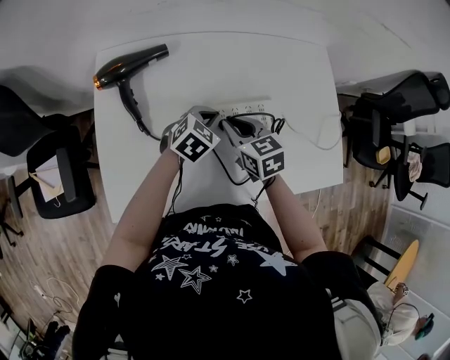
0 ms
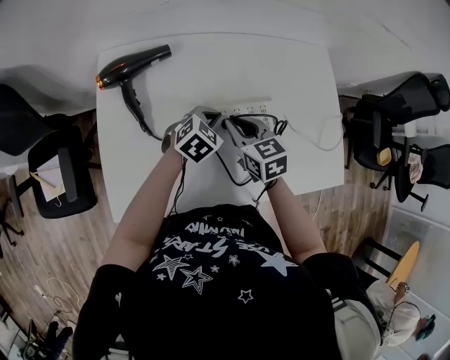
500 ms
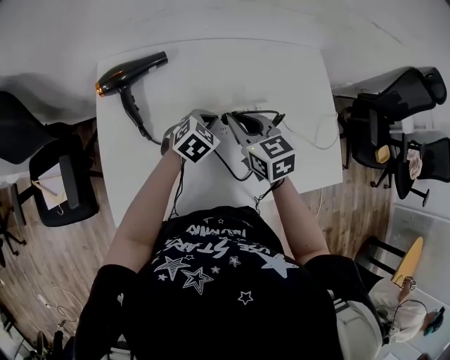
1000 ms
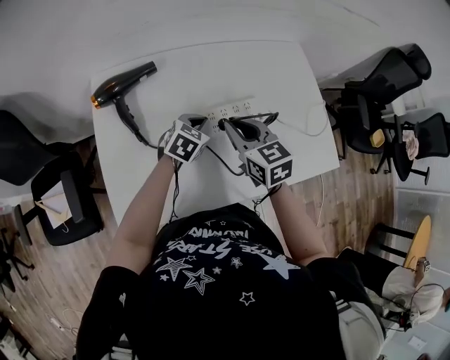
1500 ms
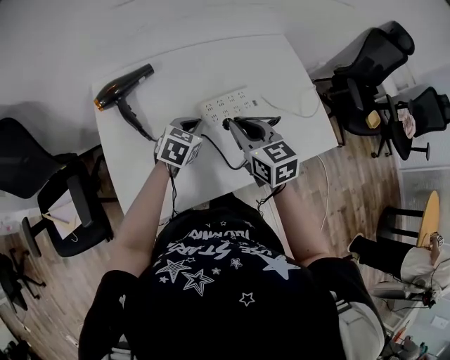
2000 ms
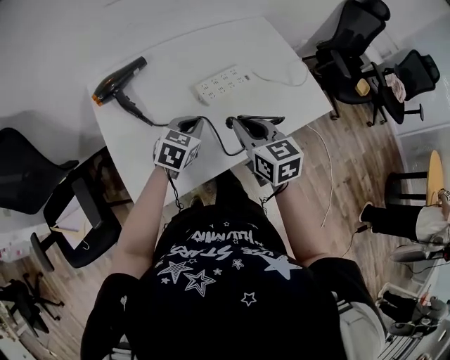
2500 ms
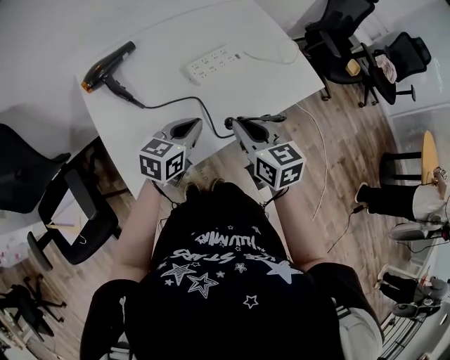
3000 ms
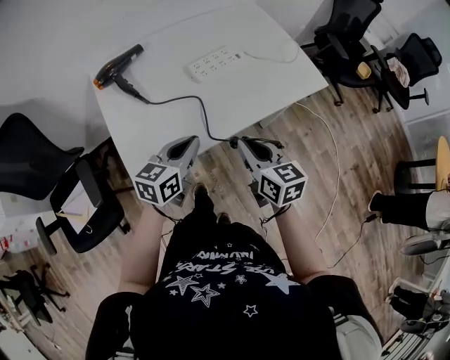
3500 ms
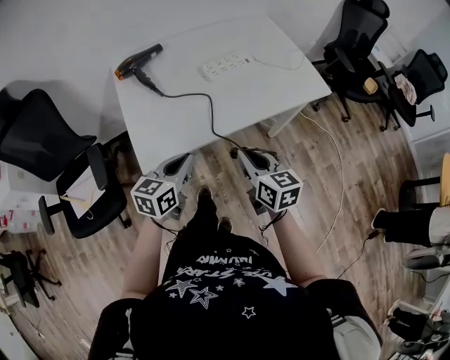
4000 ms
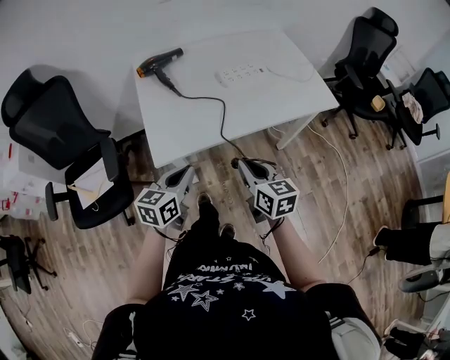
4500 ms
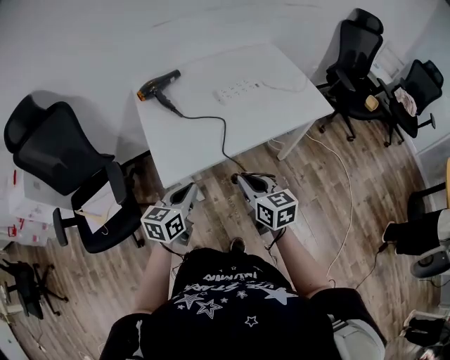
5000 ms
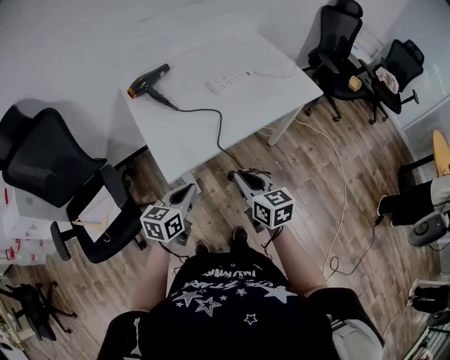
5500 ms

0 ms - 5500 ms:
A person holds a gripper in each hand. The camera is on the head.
0 ms - 2000 ms: The right gripper heads upward and backward, covering some 15 cm. The left gripper heads backward, covering some 5 cm.
2000 ms - 3500 ms: The two grippers go some 25 cm backward. The left gripper rotates some 30 degrees.
3500 ms - 5500 ms: Both grippers travel together backward and to the left, roughly 20 cm.

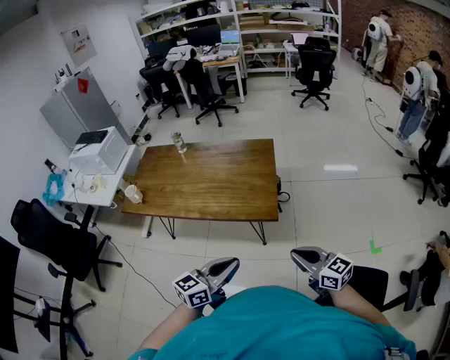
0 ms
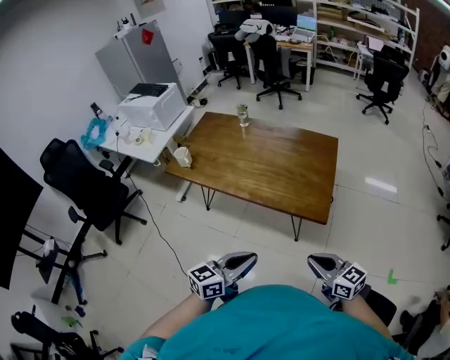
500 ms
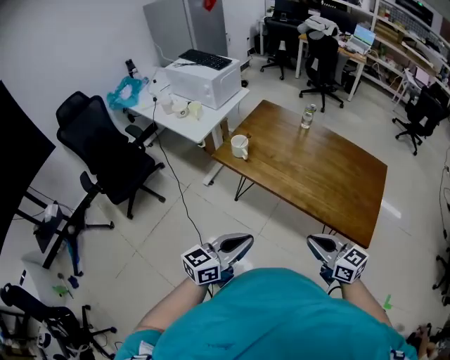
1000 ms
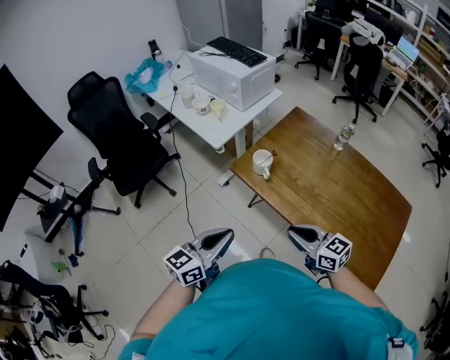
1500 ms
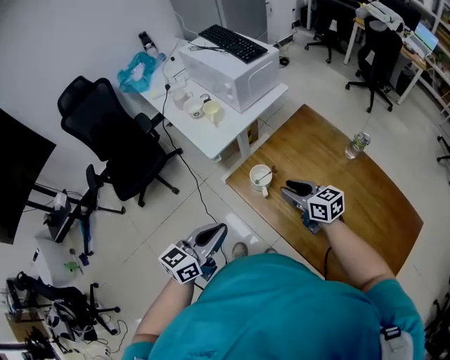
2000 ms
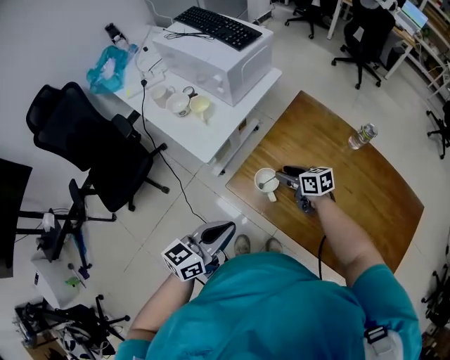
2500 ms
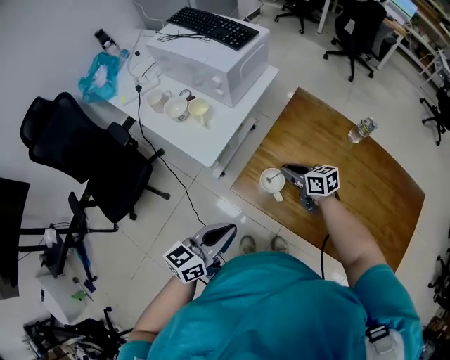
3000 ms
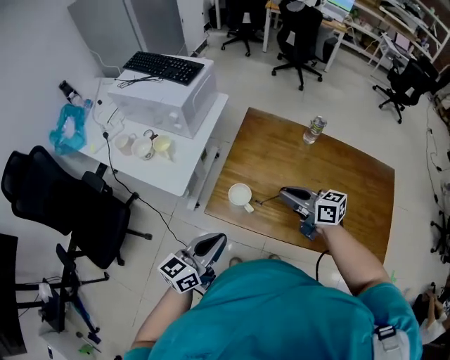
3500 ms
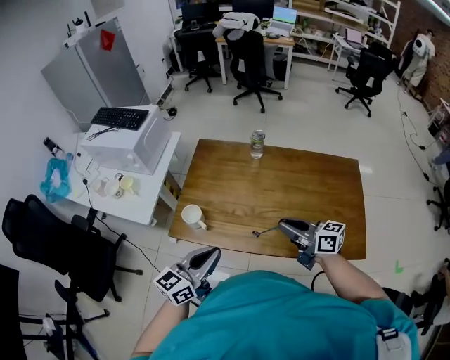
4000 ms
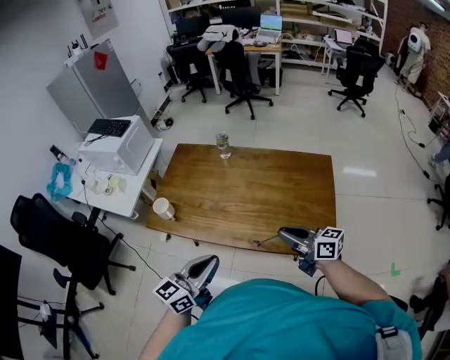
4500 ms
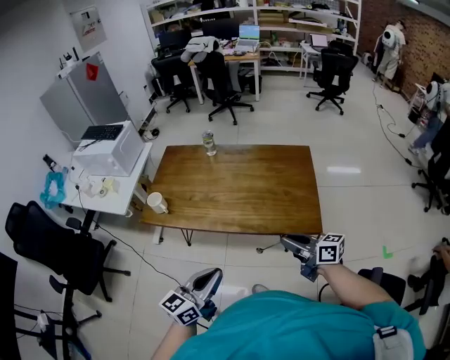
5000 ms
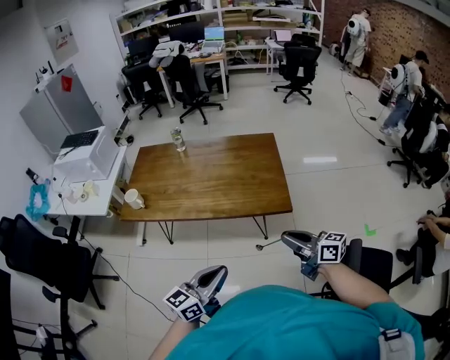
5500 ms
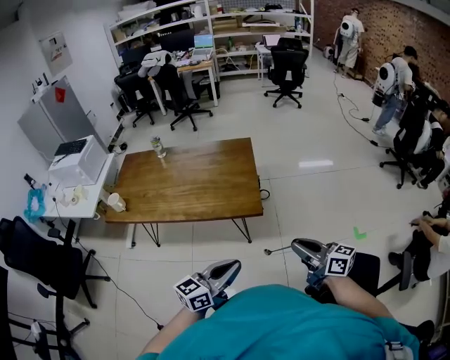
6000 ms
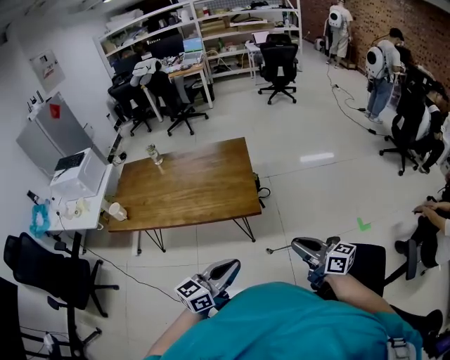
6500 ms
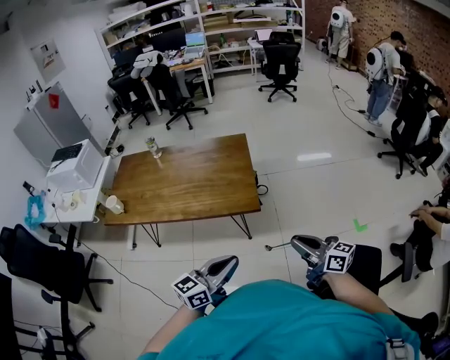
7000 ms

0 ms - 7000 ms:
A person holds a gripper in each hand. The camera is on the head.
0 ms - 2000 ms: The two grippers travel together, approximately 90 cm. The right gripper changes its angle by some 40 degrees, and opens its fingers. Meanwhile the left gripper turns by approximately 40 degrees.
2000 ms - 3500 ms: The left gripper moves forward, some 10 cm, and turns by about 30 degrees. The right gripper goes downward and returns, approximately 15 cm each way, changes its angle by about 20 degrees, and closes its fingers.
3500 ms - 5000 ms: The two grippers travel together, backward and to the right, roughly 60 cm.
5000 ms - 7000 ms: The right gripper moves to the right and backward, about 35 cm, while the left gripper heads to the right, covering some 30 cm.

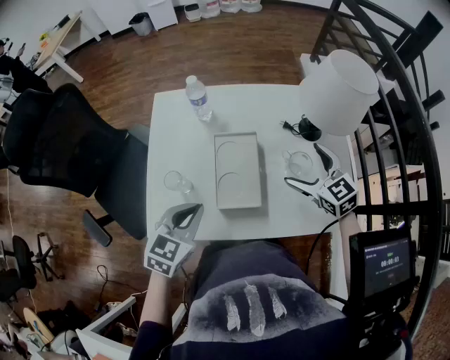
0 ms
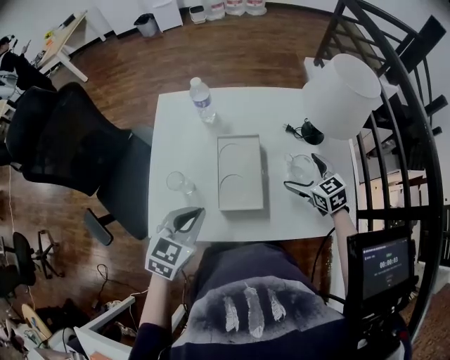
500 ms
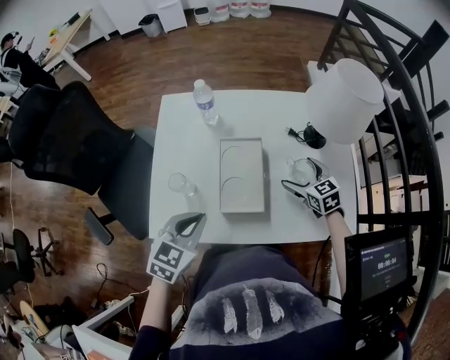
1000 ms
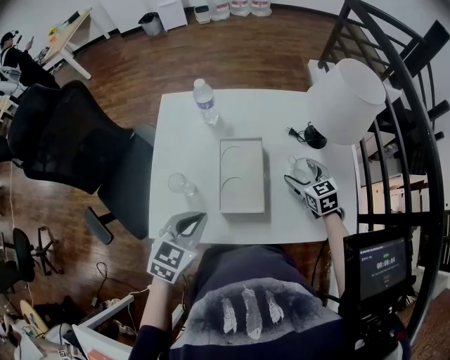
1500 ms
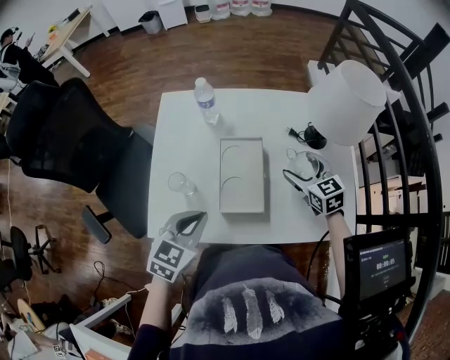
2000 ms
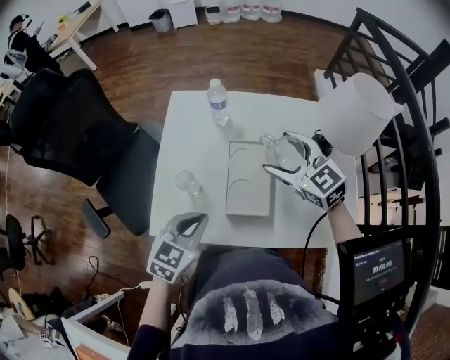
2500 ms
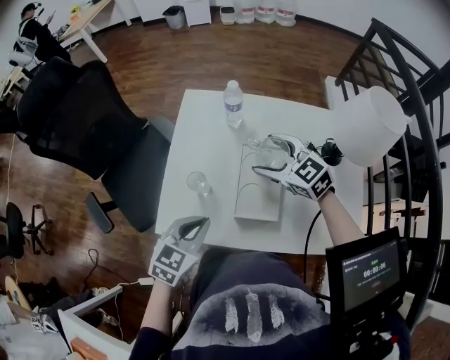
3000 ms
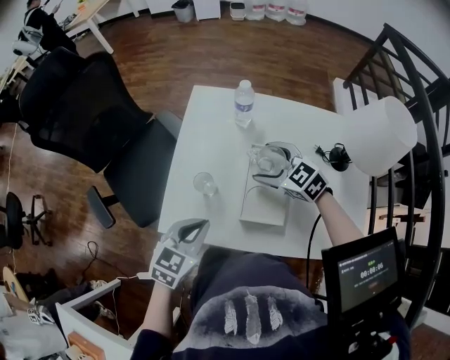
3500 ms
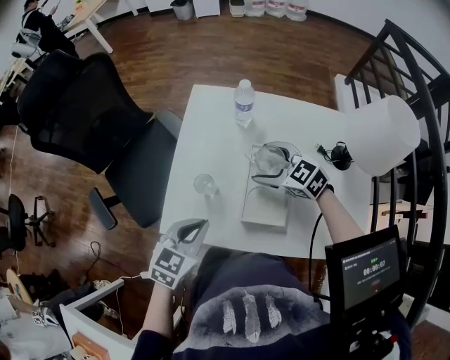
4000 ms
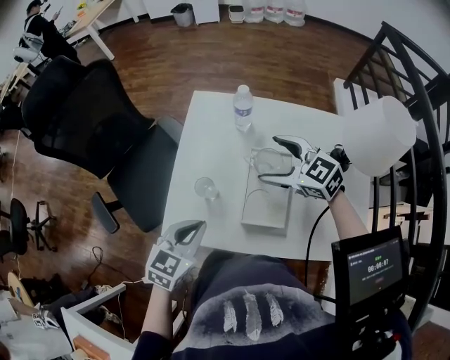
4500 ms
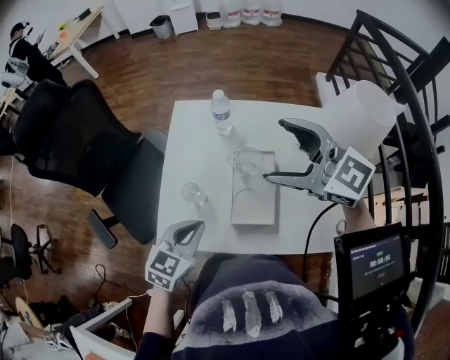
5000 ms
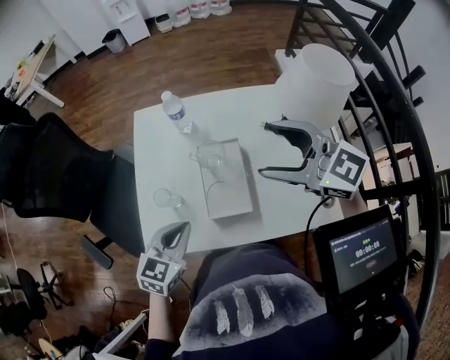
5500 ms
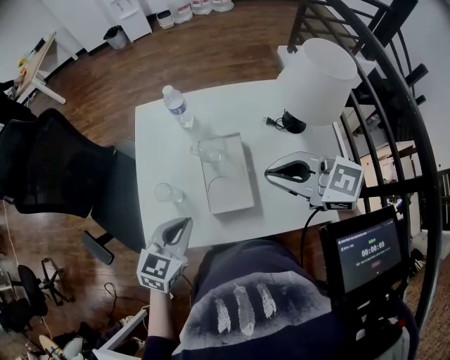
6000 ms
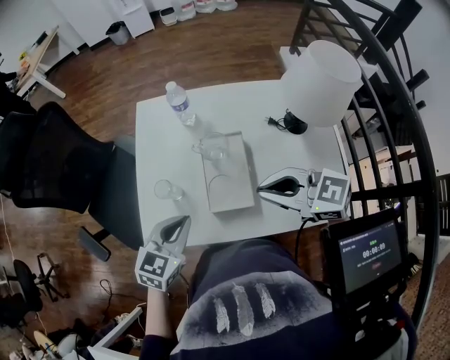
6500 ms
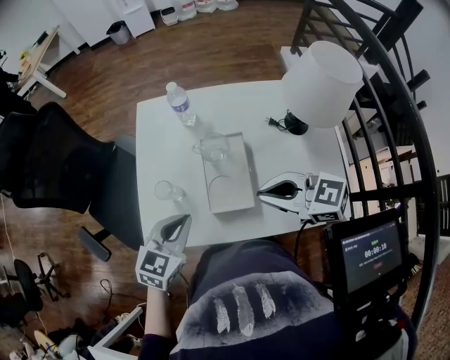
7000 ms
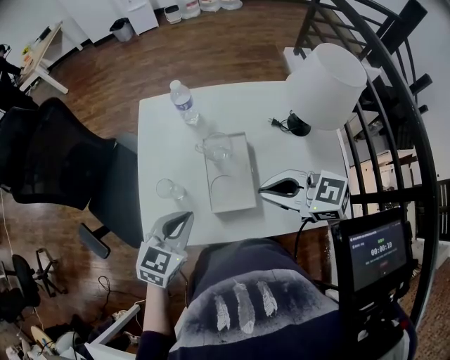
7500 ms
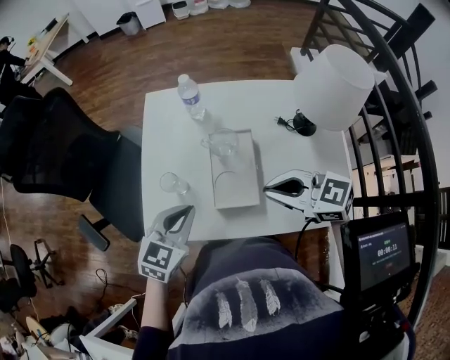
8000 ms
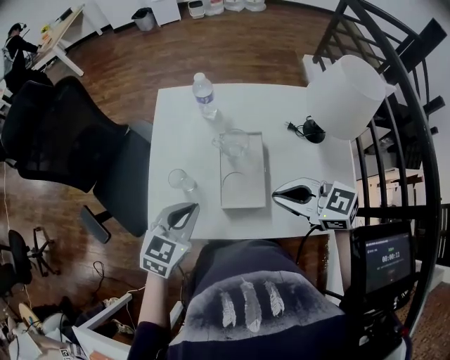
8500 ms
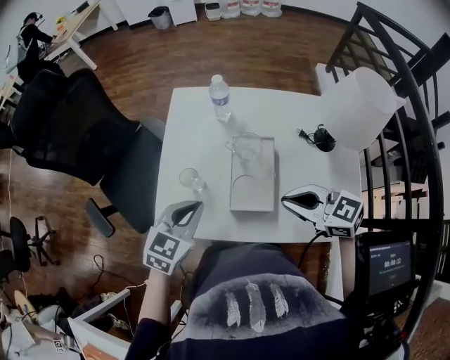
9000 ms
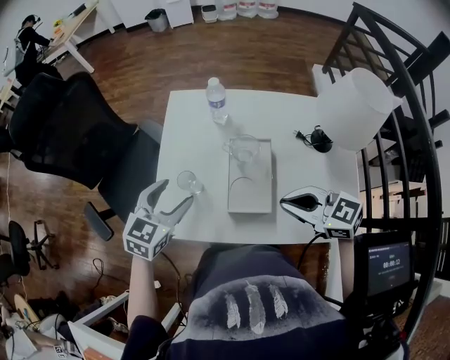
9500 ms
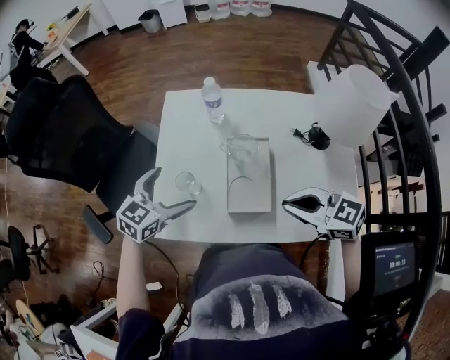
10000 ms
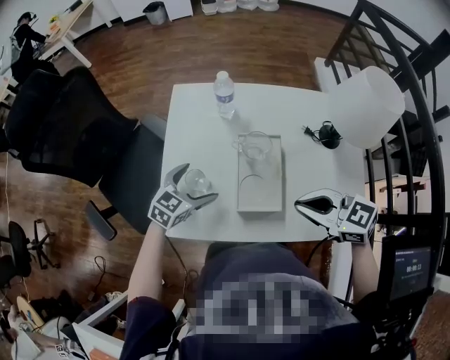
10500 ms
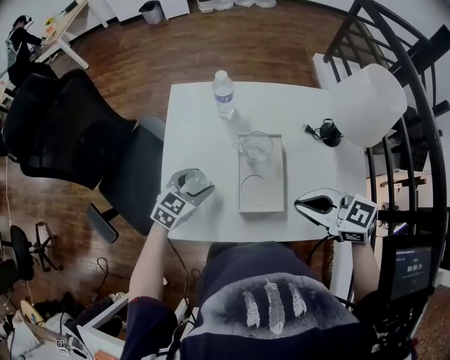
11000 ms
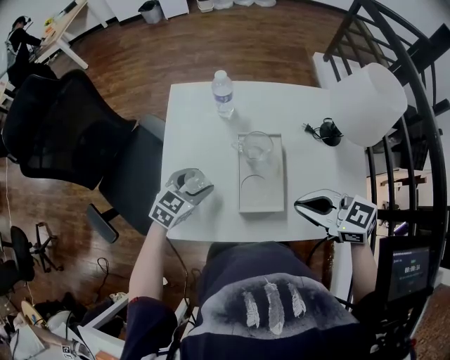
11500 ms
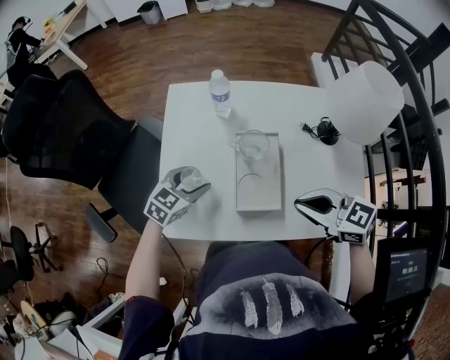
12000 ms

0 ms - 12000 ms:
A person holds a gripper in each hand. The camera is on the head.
0 ms - 2000 ms: The right gripper heads downward, covering roughly 5 cm.
2000 ms - 4000 ms: The left gripper is displaced to the left by about 5 cm. Meanwhile the right gripper goes about 20 cm to the left, and changes its angle by about 40 degrees.
4000 ms - 6000 ms: The left gripper shifts about 5 cm to the right, while the right gripper heads upward, backward and to the right, covering some 25 cm, and closes.
6000 ms - 8000 ms: The right gripper heads downward, covering about 5 cm.
8000 ms - 10000 ms: The left gripper heads forward and to the left, covering roughly 10 cm, and opens.
10000 ms - 12000 ms: The left gripper goes some 10 cm downward, and closes up.

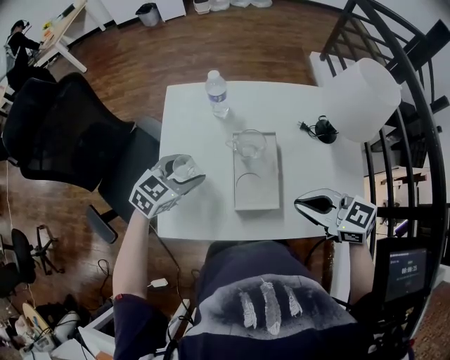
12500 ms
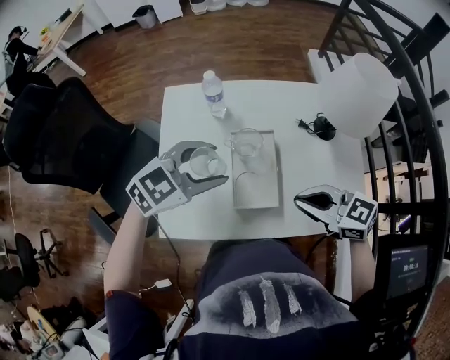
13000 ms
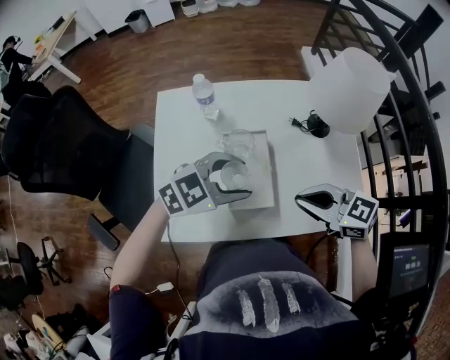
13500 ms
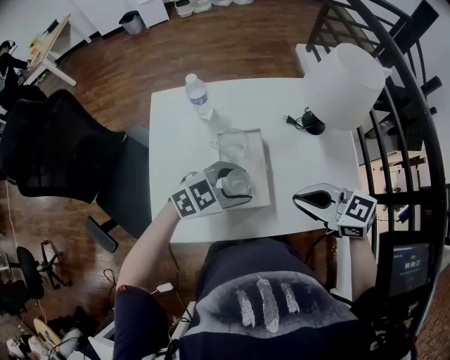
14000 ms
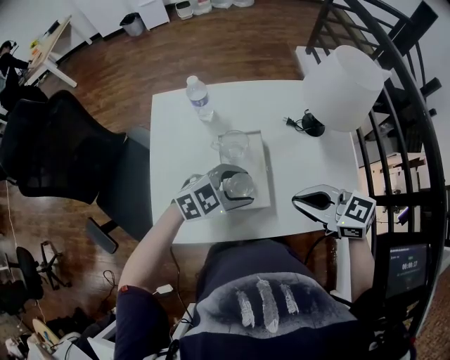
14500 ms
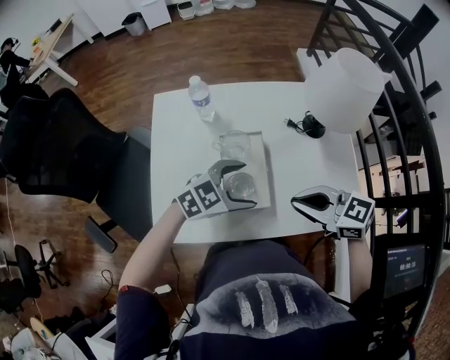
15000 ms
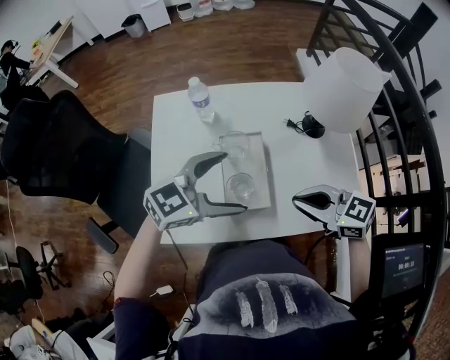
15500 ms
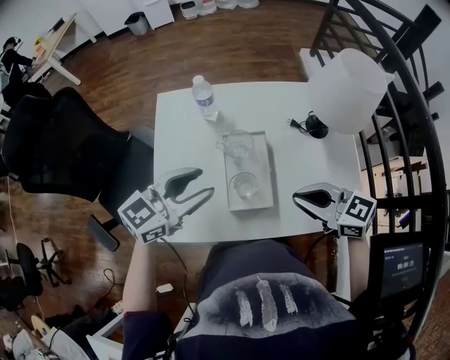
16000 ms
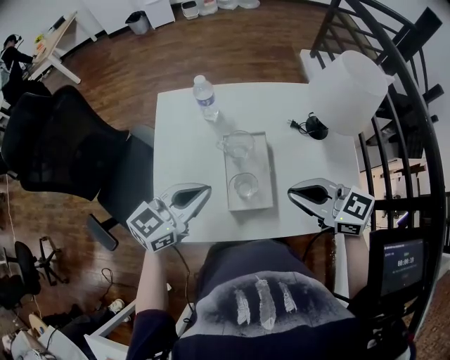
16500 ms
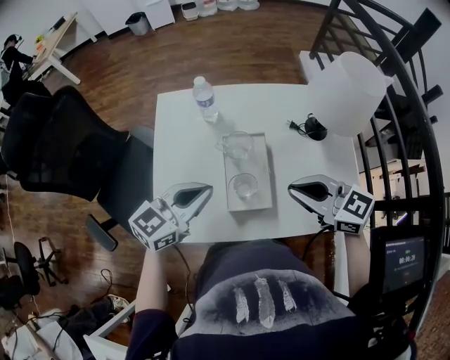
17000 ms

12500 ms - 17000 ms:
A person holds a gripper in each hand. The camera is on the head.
12500 ms - 14500 ms: The left gripper goes upward and returns, about 10 cm each way, and swivels roughly 30 degrees.
14500 ms - 17000 ms: The left gripper shifts by approximately 15 cm, rotates approximately 40 degrees, and closes.
